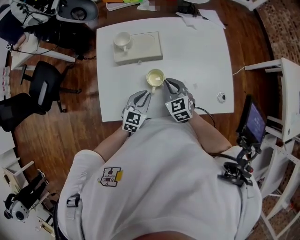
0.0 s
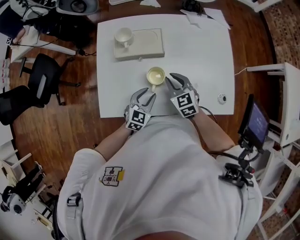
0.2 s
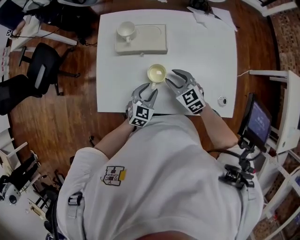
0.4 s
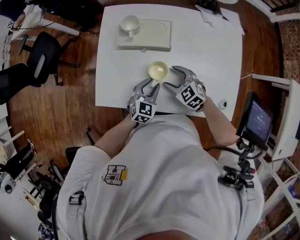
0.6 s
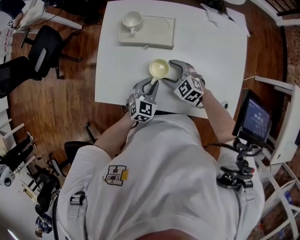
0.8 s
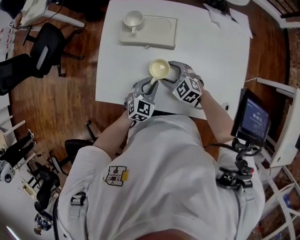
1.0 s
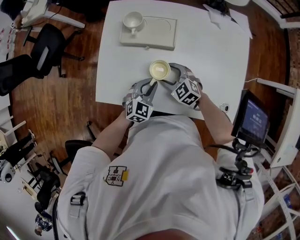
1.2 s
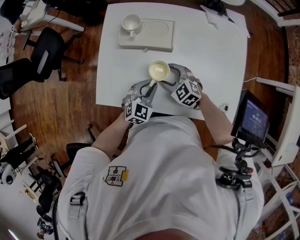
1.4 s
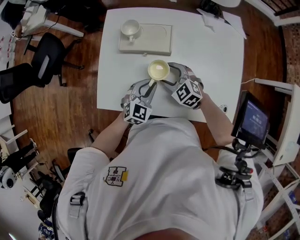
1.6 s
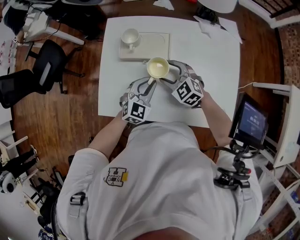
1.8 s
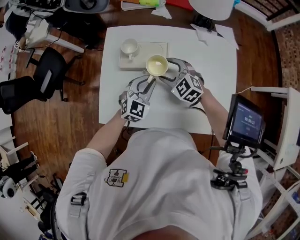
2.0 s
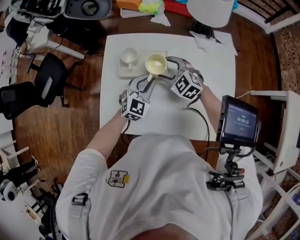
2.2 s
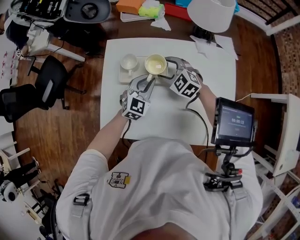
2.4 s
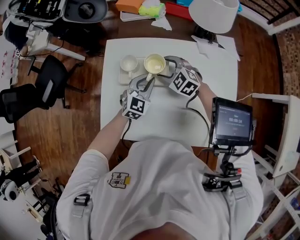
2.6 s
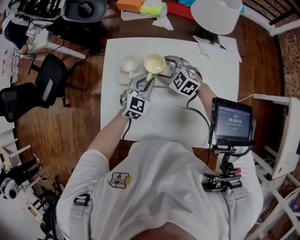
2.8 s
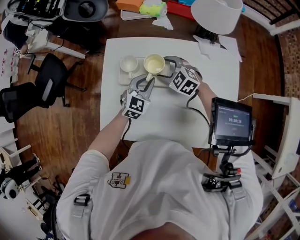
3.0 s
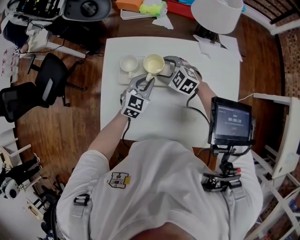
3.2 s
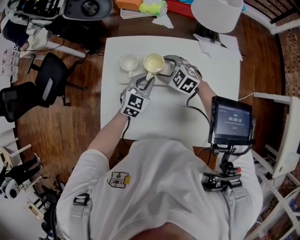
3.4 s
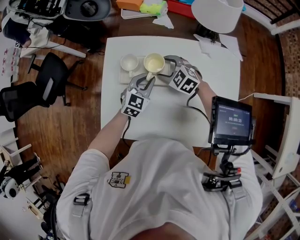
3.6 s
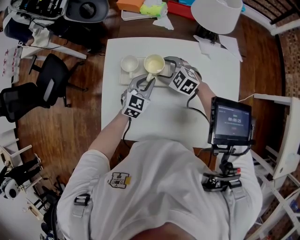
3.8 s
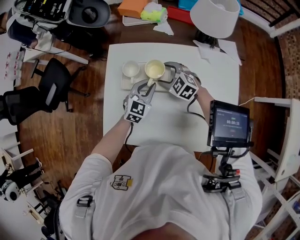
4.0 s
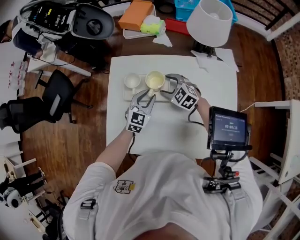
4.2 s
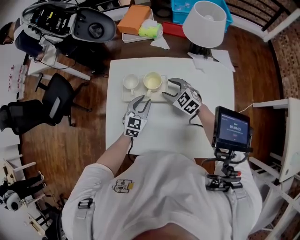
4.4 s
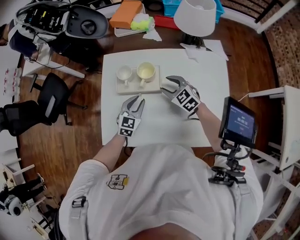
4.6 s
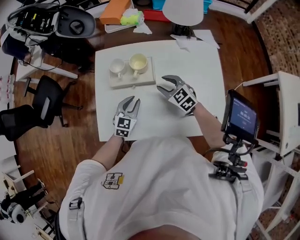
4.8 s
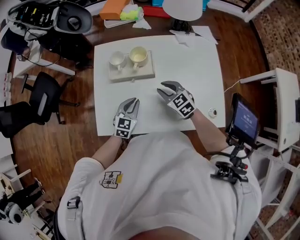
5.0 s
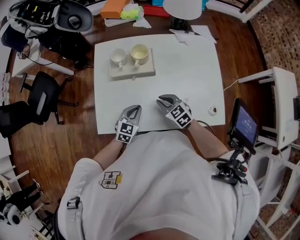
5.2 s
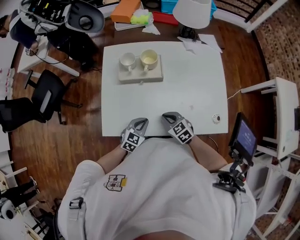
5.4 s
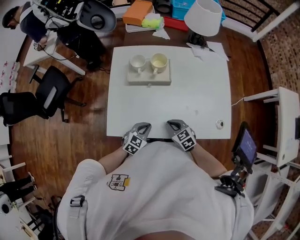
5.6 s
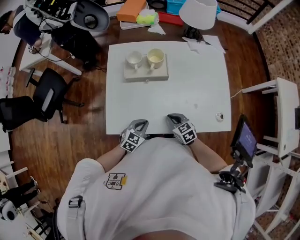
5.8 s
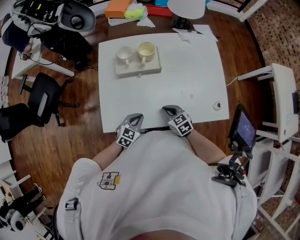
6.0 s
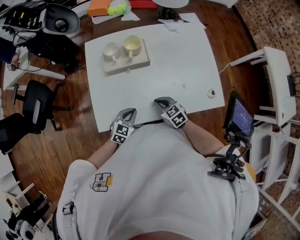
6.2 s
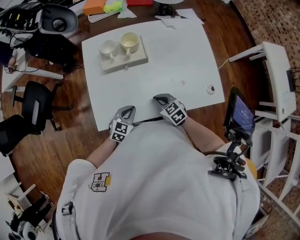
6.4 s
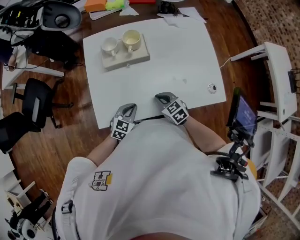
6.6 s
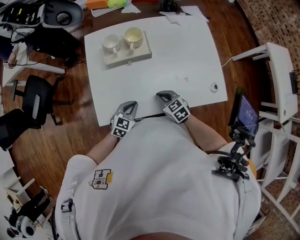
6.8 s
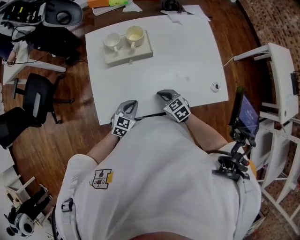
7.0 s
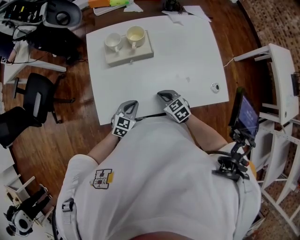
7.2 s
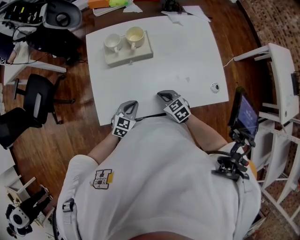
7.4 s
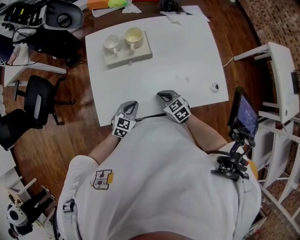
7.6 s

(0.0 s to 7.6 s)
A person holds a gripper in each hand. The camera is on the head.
0.0 s - 1.6 s: The right gripper moves approximately 5 cm, turns by some 40 degrees, and opens its fingers. The left gripper changes place by some 5 cm, and opens and closes again.
1.6 s - 3.0 s: The two grippers go about 15 cm forward.
3.0 s - 4.6 s: The right gripper heads backward, covering some 5 cm. Meanwhile the left gripper moves backward and to the left, roughly 10 cm.
4.6 s - 6.0 s: The grippers both shift backward by roughly 20 cm. The right gripper turns by about 30 degrees, and closes, while the left gripper swivels about 20 degrees, and closes up.
6.0 s - 7.6 s: The two grippers keep their place.

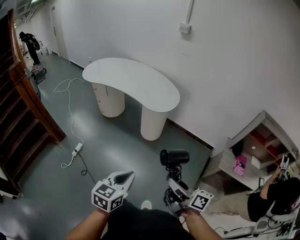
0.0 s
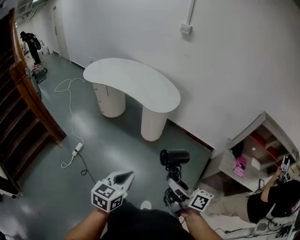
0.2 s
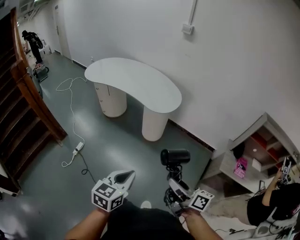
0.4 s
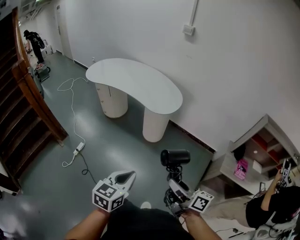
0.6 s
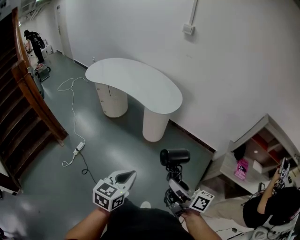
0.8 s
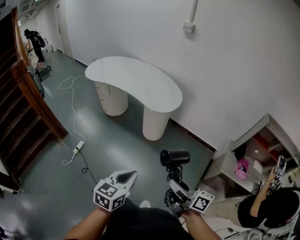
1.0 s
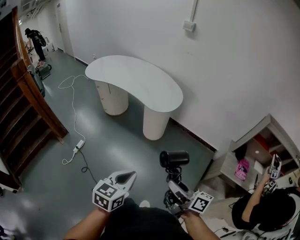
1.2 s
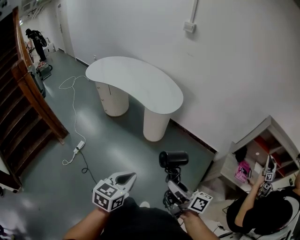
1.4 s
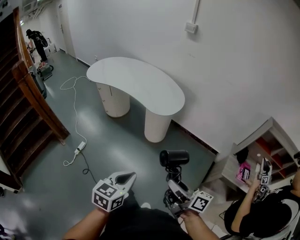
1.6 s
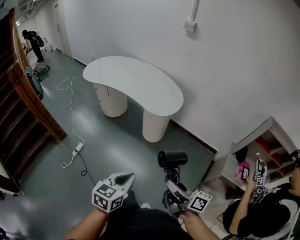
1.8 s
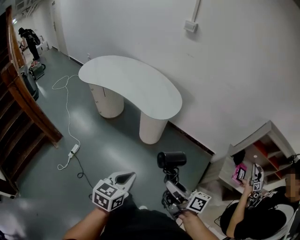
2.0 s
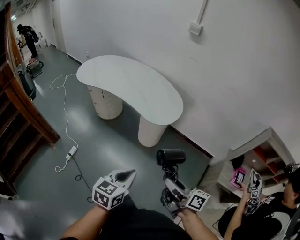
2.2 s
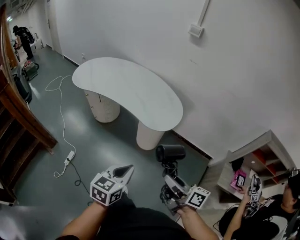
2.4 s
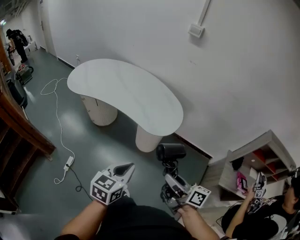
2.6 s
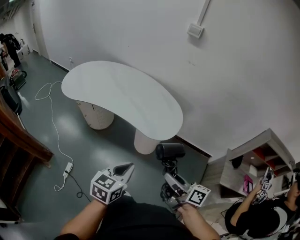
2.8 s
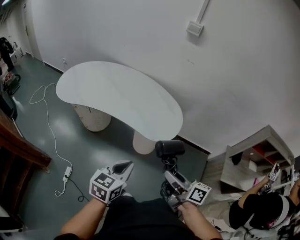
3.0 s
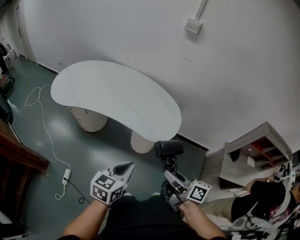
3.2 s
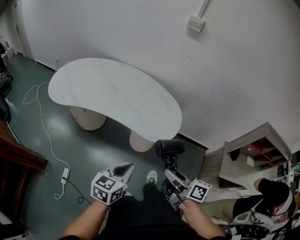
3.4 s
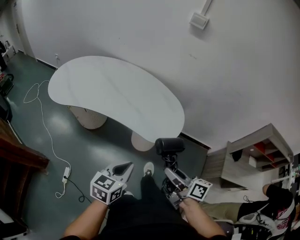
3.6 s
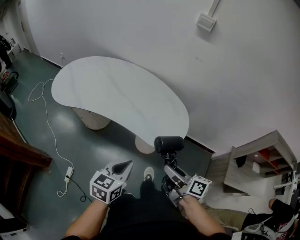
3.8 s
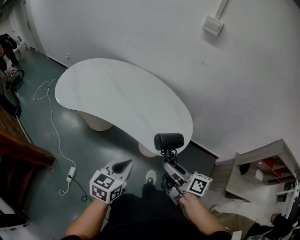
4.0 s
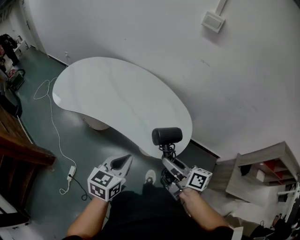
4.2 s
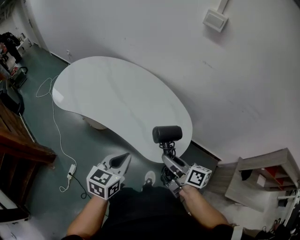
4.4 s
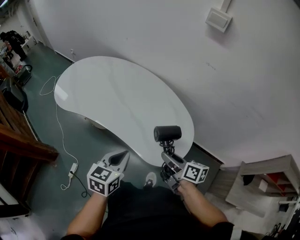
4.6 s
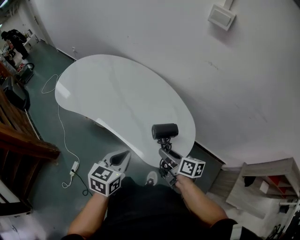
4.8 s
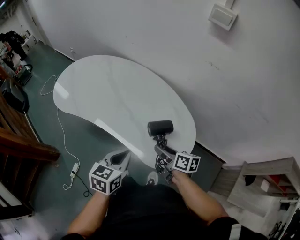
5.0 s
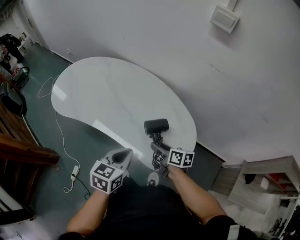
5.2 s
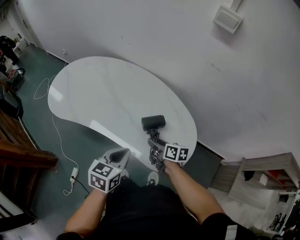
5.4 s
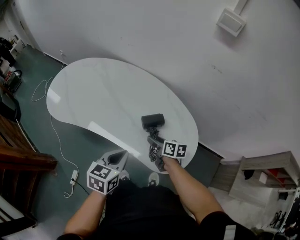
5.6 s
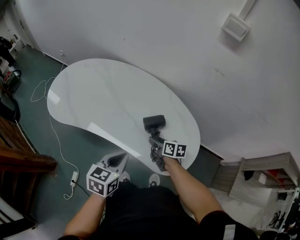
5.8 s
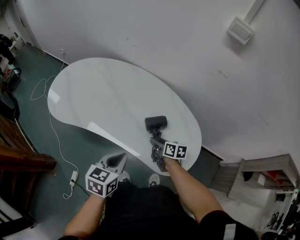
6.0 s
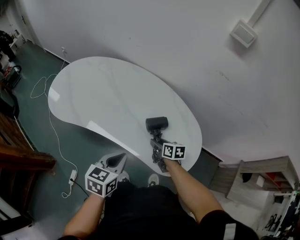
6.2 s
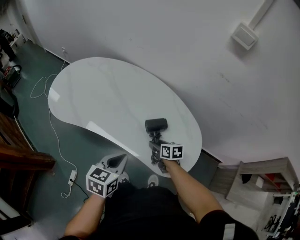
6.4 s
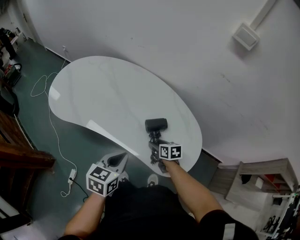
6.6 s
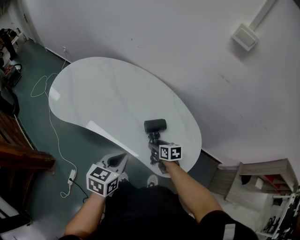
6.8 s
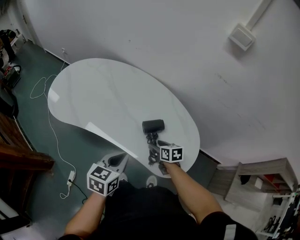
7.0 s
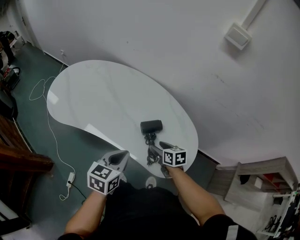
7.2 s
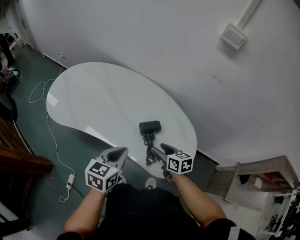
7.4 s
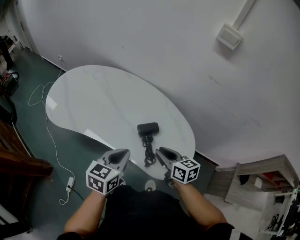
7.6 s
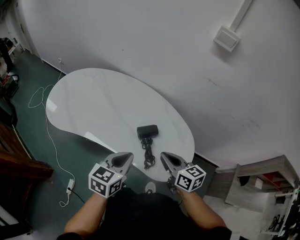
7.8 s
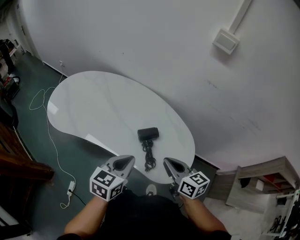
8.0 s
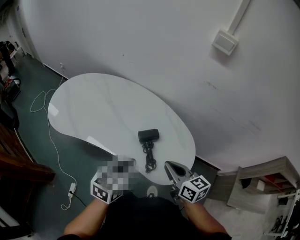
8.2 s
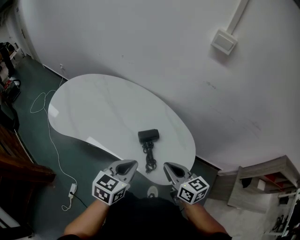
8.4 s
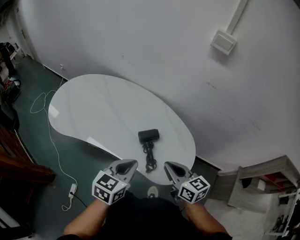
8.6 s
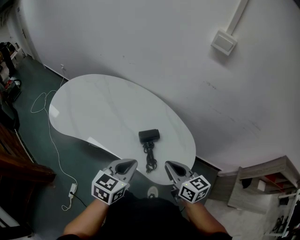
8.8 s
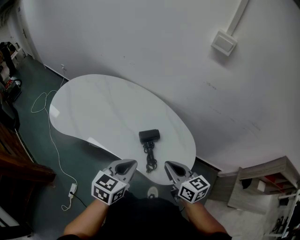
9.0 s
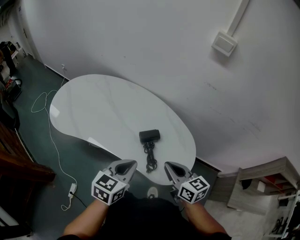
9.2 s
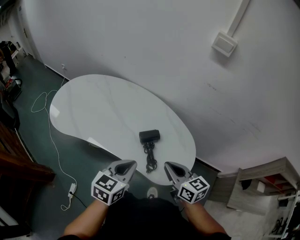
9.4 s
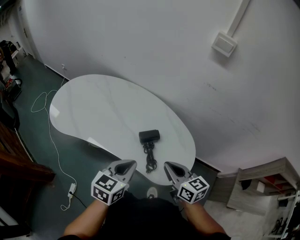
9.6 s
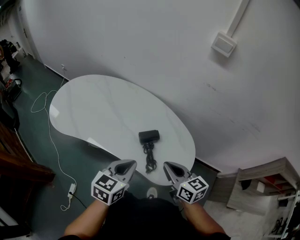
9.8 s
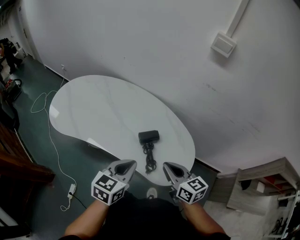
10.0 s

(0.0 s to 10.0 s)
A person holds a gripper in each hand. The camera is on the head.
0.0 s - 1.4 s: The grippers make only small movements.
1.4 s - 2.8 s: The grippers both shift forward by about 30 cm.
2.8 s - 4.2 s: The two grippers go some 20 cm forward.
4.2 s - 5.8 s: The left gripper moves forward, about 15 cm. Meanwhile the right gripper shifts about 30 cm forward and downward, and rotates roughly 30 degrees.
5.8 s - 7.2 s: The grippers make only small movements.
7.2 s - 8.6 s: The right gripper is displaced upward and backward by approximately 20 cm, rotates about 20 degrees, and closes its fingers, while the left gripper shifts by roughly 5 cm.
8.6 s - 10.0 s: Both grippers stay about where they are.

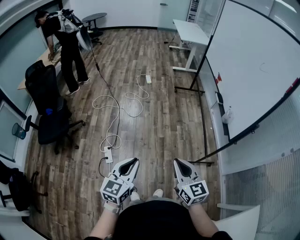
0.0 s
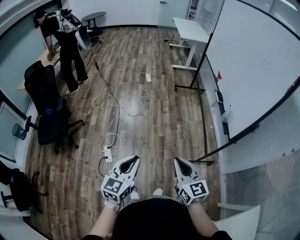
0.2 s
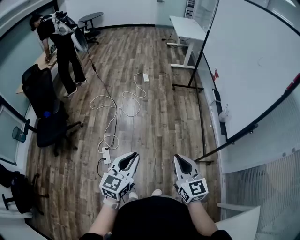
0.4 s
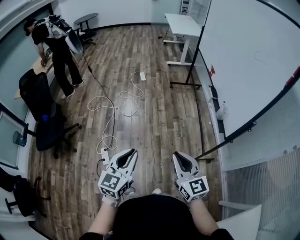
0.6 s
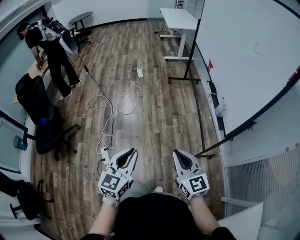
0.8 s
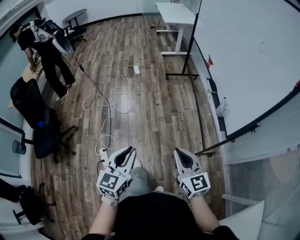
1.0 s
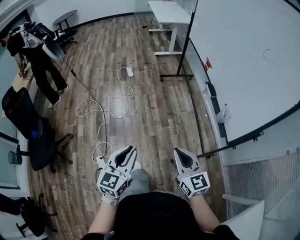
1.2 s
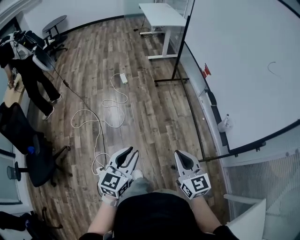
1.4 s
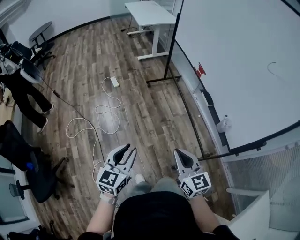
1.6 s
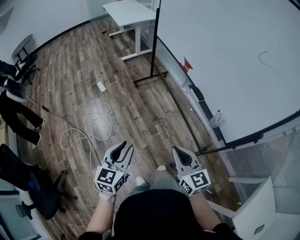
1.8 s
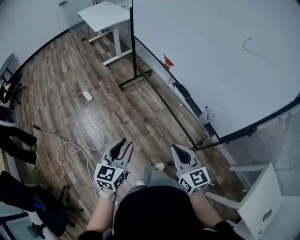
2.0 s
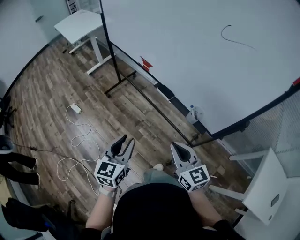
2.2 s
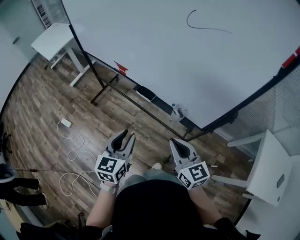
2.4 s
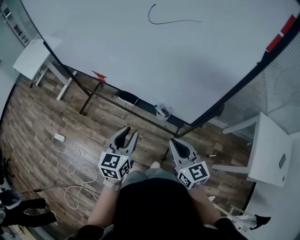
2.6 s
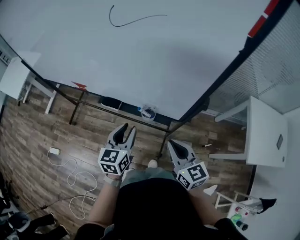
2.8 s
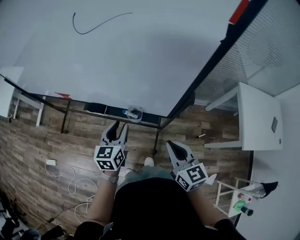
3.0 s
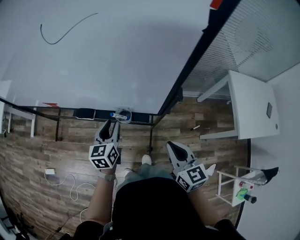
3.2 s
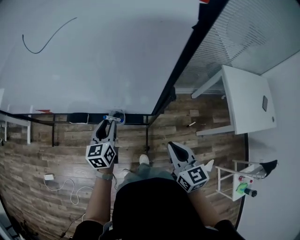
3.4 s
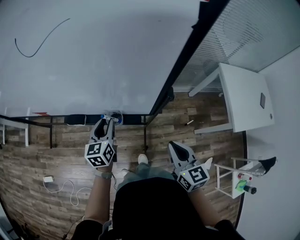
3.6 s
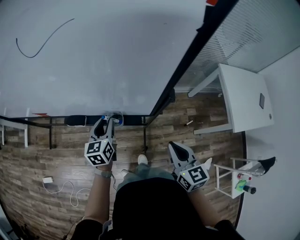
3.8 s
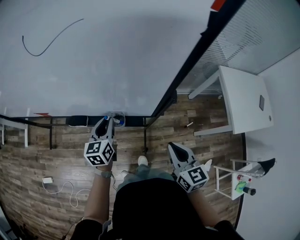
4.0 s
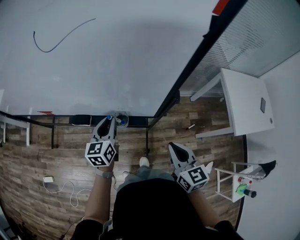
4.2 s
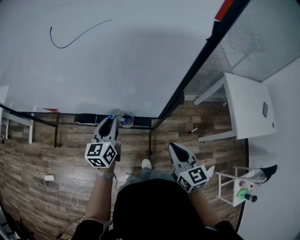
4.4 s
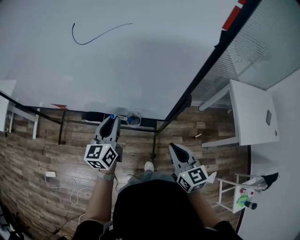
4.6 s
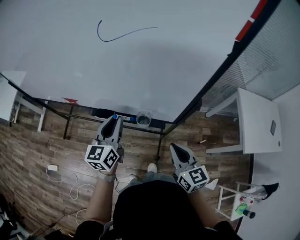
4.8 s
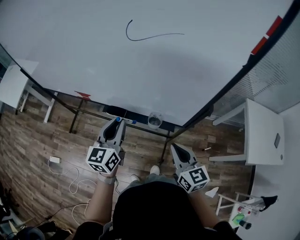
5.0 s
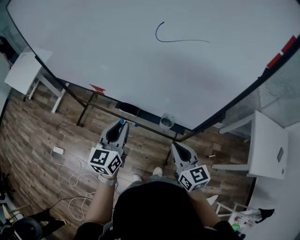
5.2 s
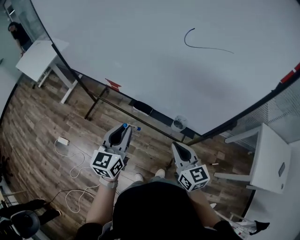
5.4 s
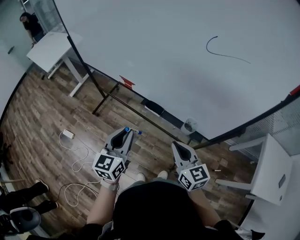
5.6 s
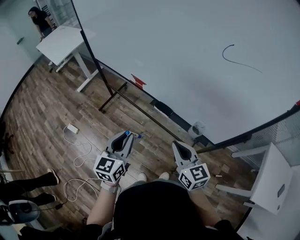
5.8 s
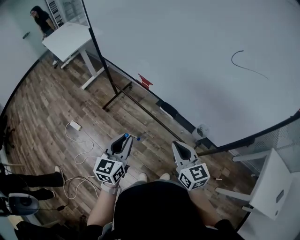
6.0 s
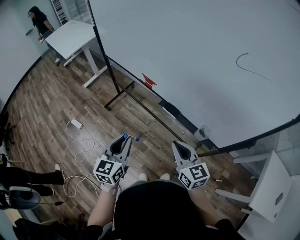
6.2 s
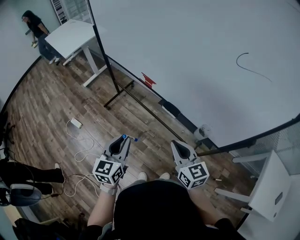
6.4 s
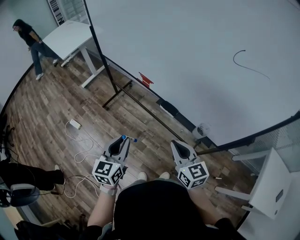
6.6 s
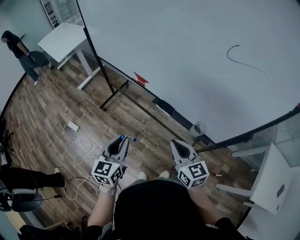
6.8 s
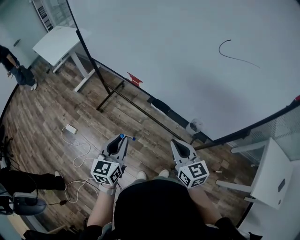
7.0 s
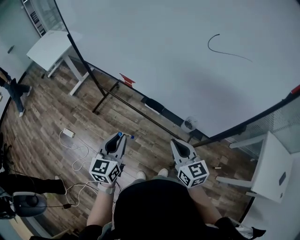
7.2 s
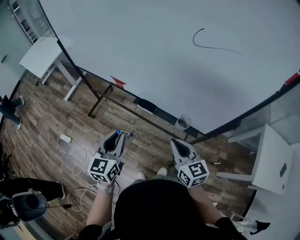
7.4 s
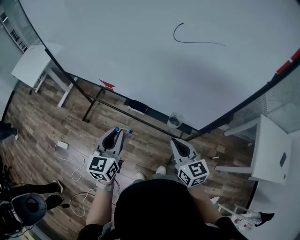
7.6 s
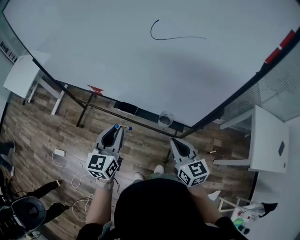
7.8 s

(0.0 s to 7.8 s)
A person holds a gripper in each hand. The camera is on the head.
0.0 s - 1.6 s: Both grippers travel together forward, about 40 cm.
1.6 s - 3.2 s: The left gripper moves some 50 cm, and changes its angle by approximately 50 degrees. Meanwhile the right gripper ends up about 35 cm from where it was, and rotates about 70 degrees.
3.2 s - 4.6 s: The left gripper is displaced upward by about 10 cm.
4.6 s - 6.2 s: The left gripper shifts by approximately 35 cm, and turns by roughly 30 degrees, while the right gripper shifts by approximately 30 cm, and turns by approximately 40 degrees.
6.2 s - 7.8 s: The right gripper travels to the right by approximately 15 cm, and rotates roughly 20 degrees, while the left gripper shifts roughly 20 cm to the right and forward.
